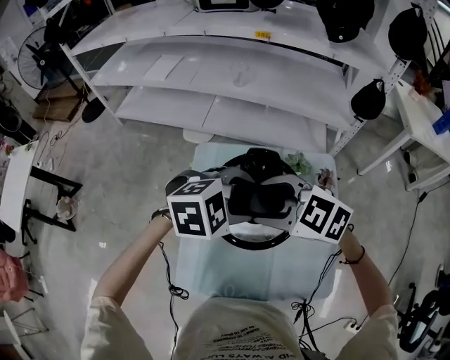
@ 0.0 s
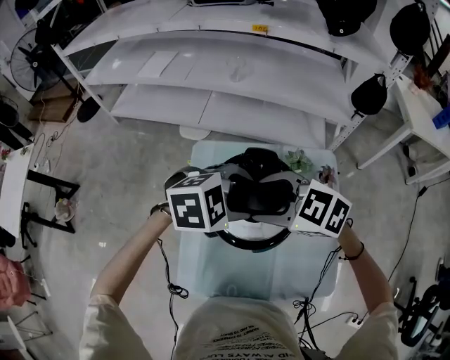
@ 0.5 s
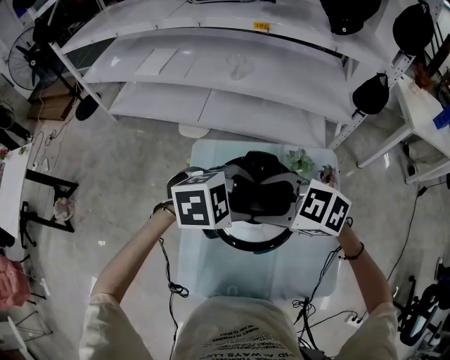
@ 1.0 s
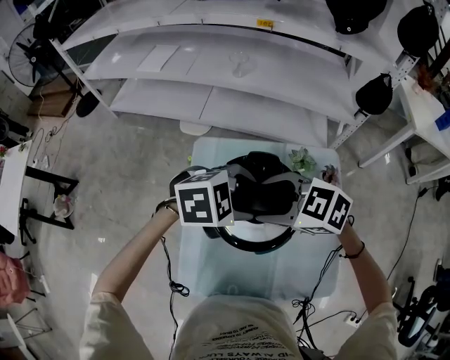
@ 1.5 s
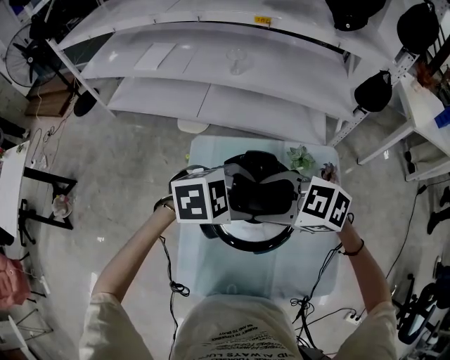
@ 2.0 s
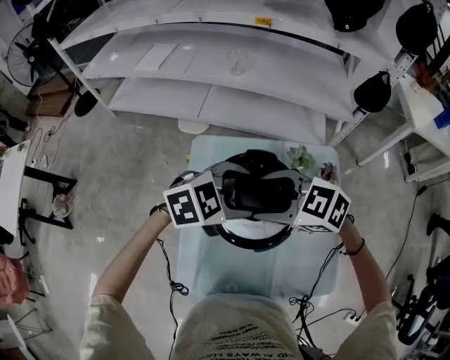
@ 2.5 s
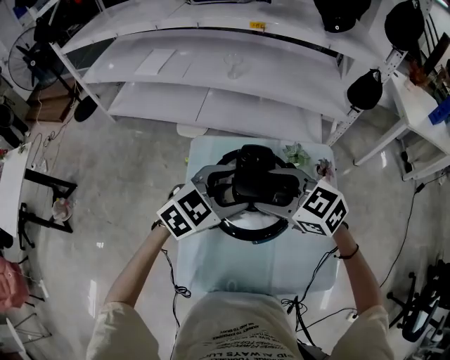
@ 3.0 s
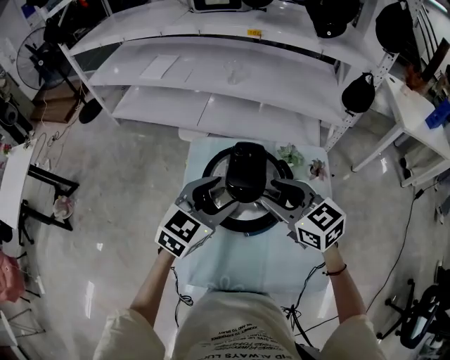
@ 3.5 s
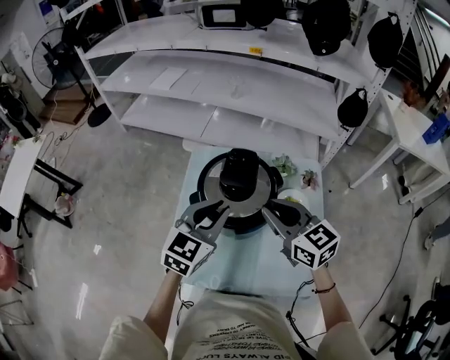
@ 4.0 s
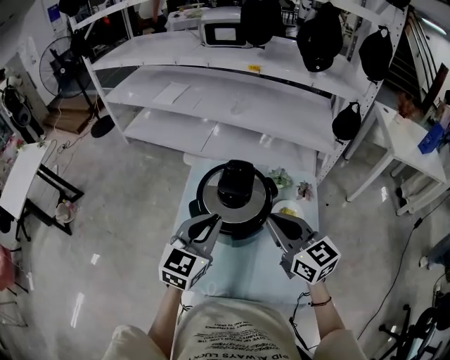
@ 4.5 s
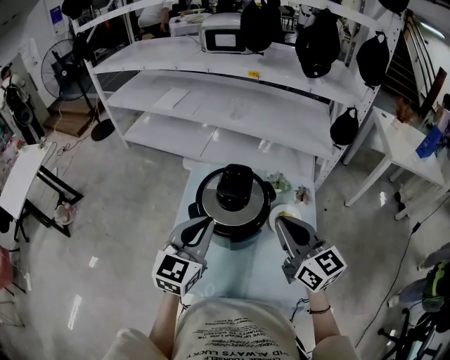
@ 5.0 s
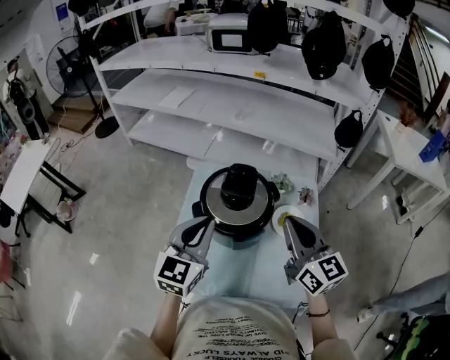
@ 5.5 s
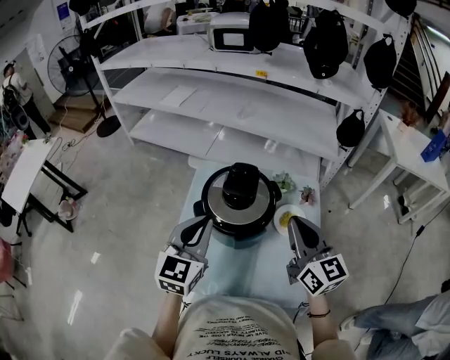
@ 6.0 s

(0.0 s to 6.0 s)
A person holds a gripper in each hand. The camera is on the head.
0.0 s - 2.0 s: The grippers stay close to where they were, moving slightly.
2.0 s - 4.0 s: The right gripper changes place by approximately 10 cm, changes its angle by about 40 degrees, and closes. Meanwhile the left gripper ends up approximately 10 cm from where it was, tilts its fingers some 30 degrees upward, and closes up.
4.0 s - 6.0 s: The left gripper shifts by roughly 5 cm. Meanwhile the right gripper travels to the right by roughly 5 cm, and turns by about 20 degrees.

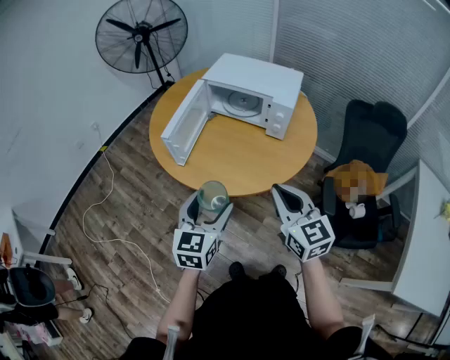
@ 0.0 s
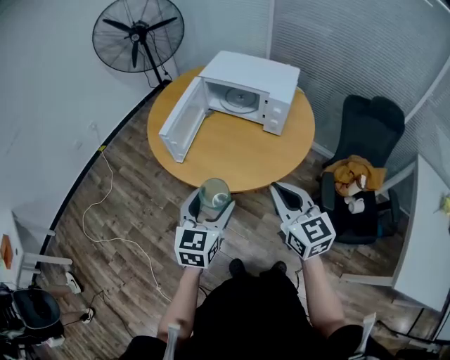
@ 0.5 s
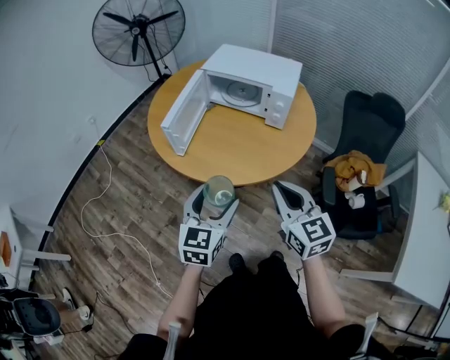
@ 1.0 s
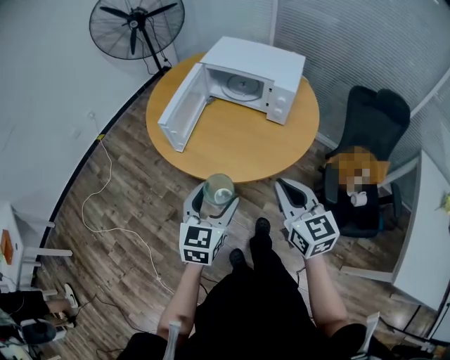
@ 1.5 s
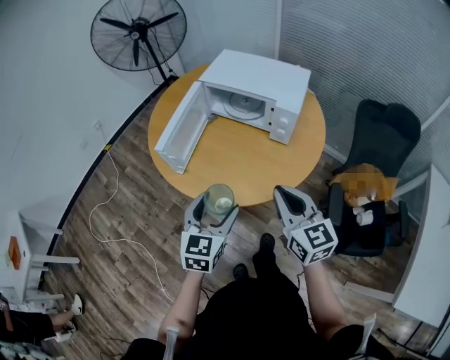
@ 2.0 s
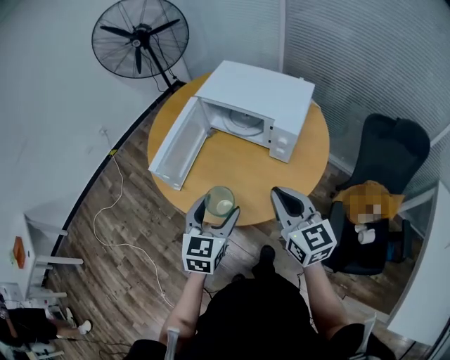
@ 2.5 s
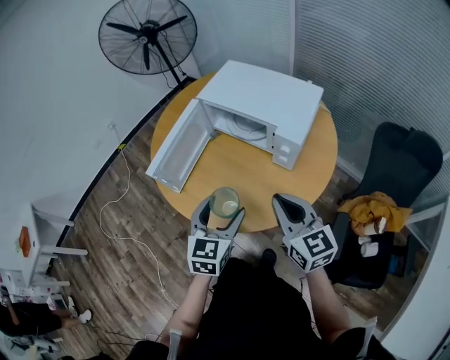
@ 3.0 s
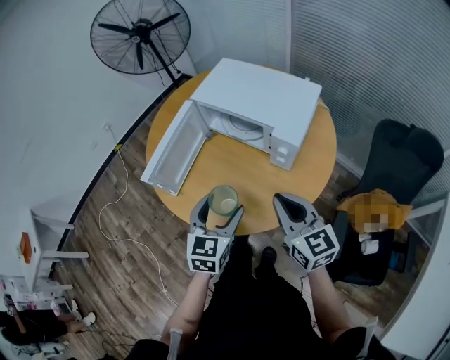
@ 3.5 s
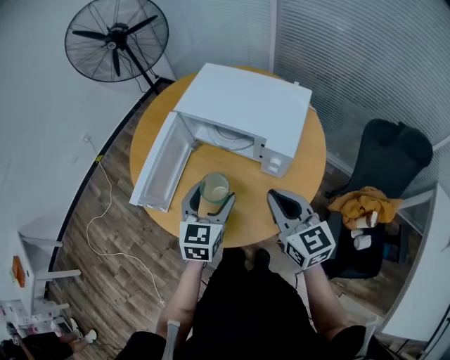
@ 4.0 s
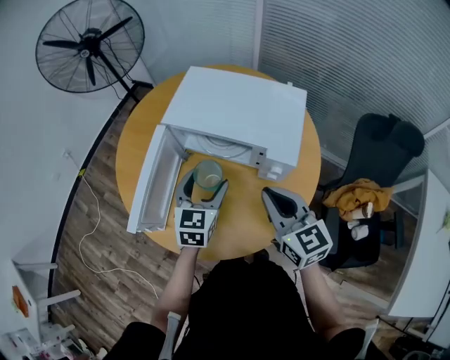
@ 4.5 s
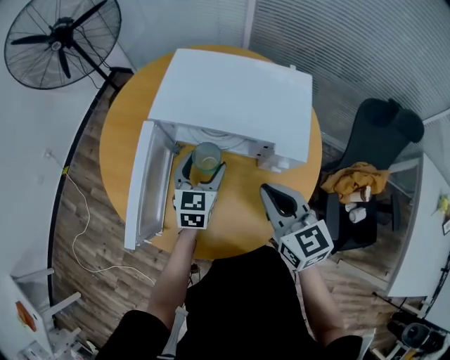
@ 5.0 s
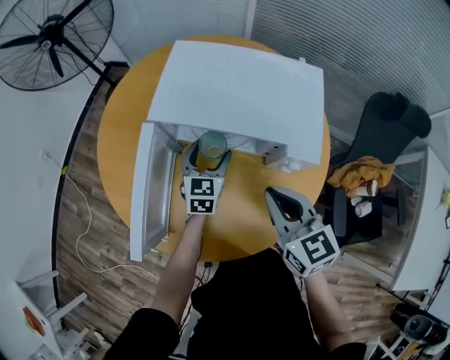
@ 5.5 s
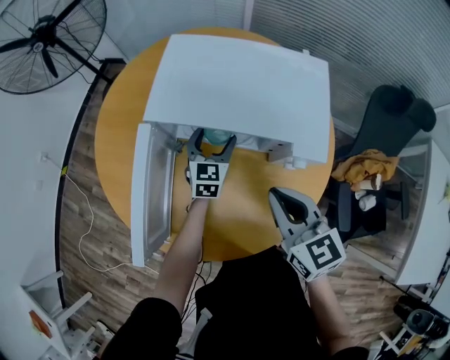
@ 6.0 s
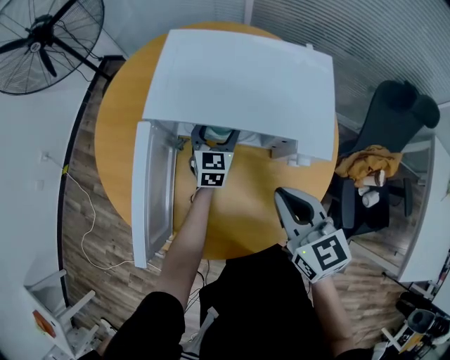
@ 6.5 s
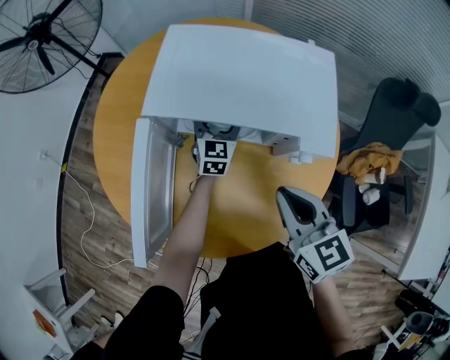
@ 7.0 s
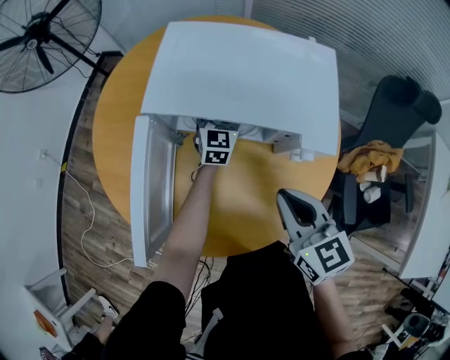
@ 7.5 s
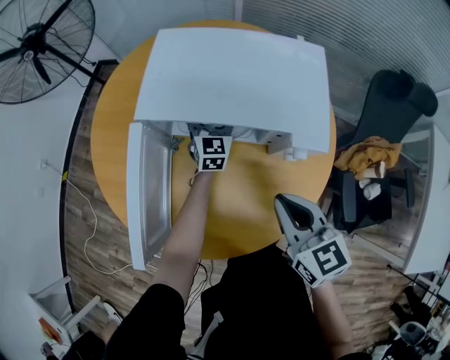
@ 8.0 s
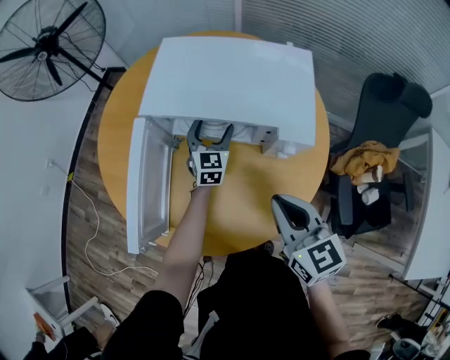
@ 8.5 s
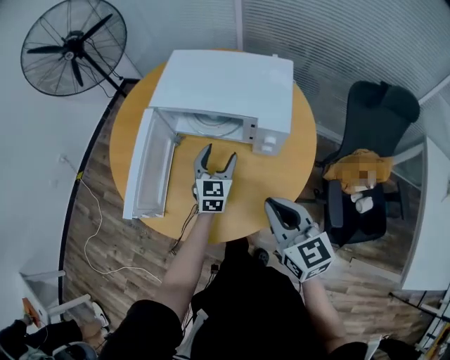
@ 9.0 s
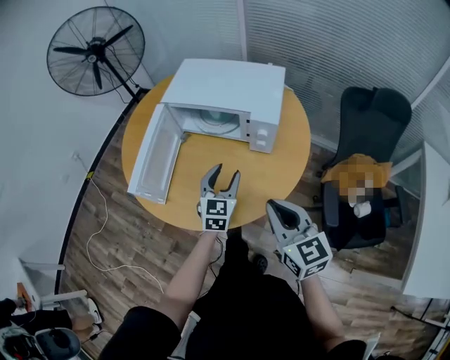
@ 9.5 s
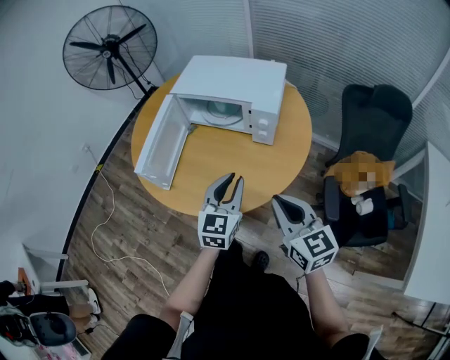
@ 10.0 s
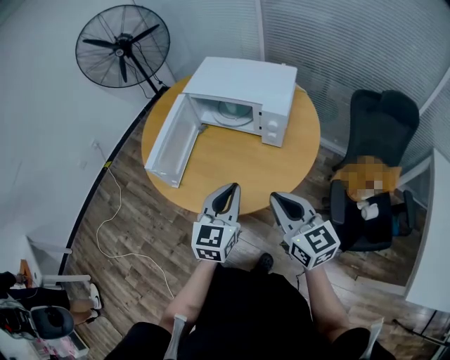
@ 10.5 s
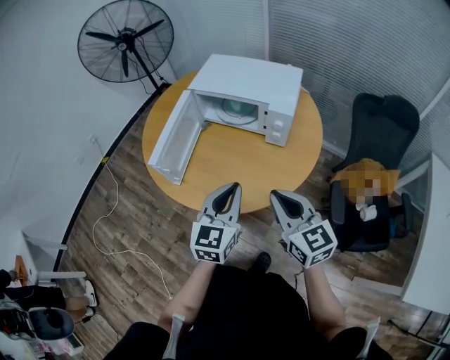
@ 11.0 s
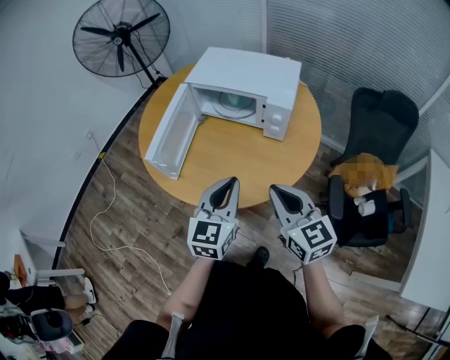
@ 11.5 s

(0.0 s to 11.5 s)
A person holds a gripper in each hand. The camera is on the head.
0.0 s - 2.0 s: The grippers both shift forward by roughly 5 cm.
2.0 s - 4.0 s: The right gripper goes about 20 cm forward and to the right; the left gripper moves forward, some 20 cm.
4.0 s - 6.0 s: The left gripper is displaced forward and downward by some 30 cm, while the right gripper shifts roughly 15 cm forward, to the left and downward.
6.0 s - 7.5 s: The left gripper travels forward by roughly 5 cm.
7.5 s - 9.5 s: The left gripper is displaced backward by approximately 35 cm, and closes its fingers. The right gripper shifts about 20 cm backward.
9.5 s - 11.5 s: The left gripper heads backward and upward, covering some 20 cm, and closes its fingers.

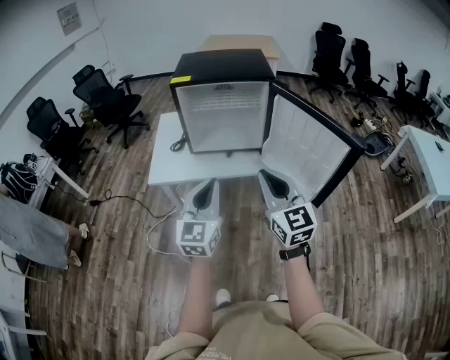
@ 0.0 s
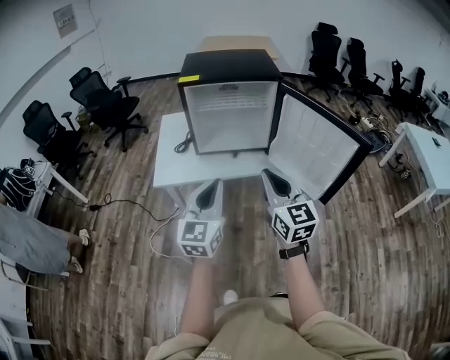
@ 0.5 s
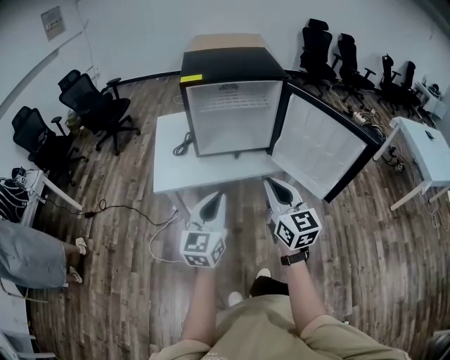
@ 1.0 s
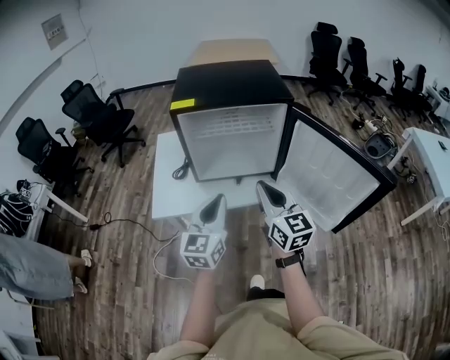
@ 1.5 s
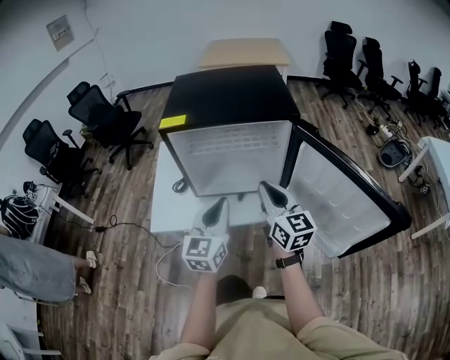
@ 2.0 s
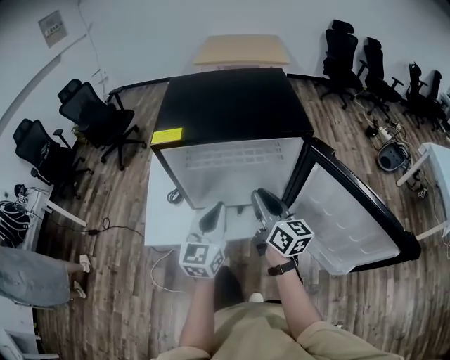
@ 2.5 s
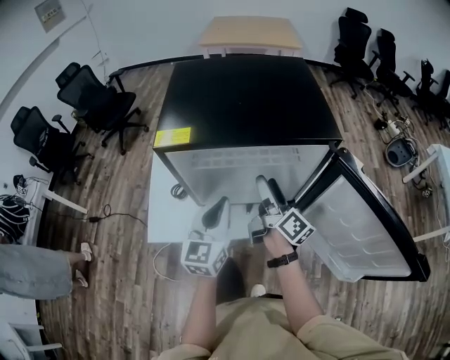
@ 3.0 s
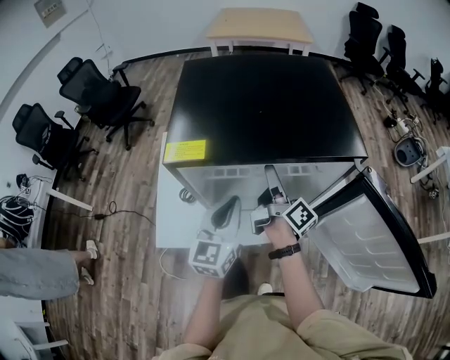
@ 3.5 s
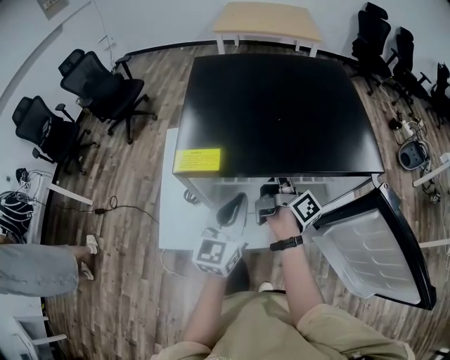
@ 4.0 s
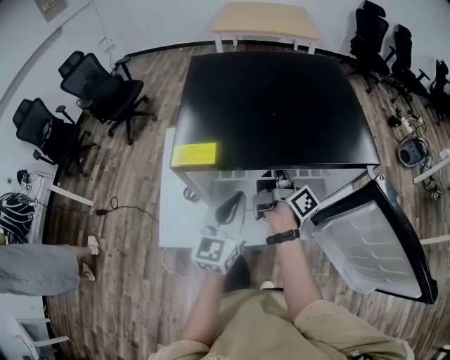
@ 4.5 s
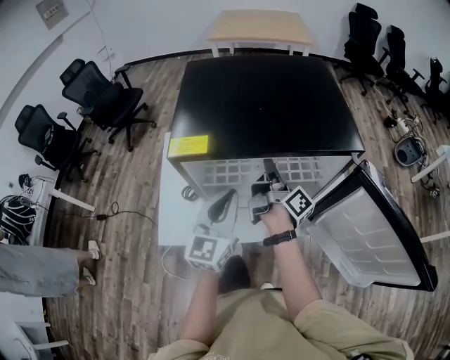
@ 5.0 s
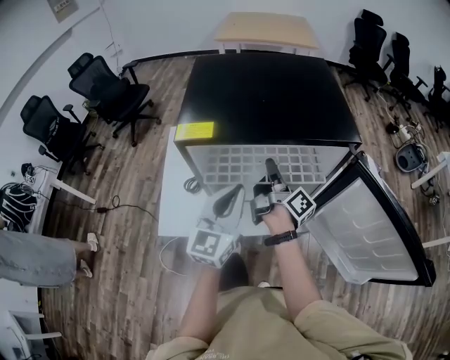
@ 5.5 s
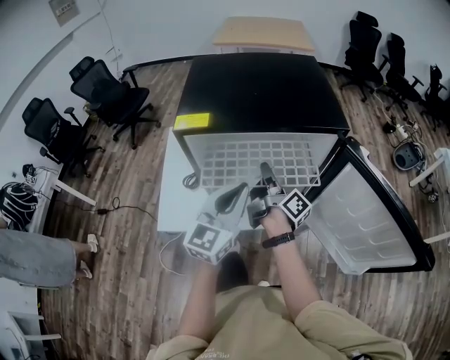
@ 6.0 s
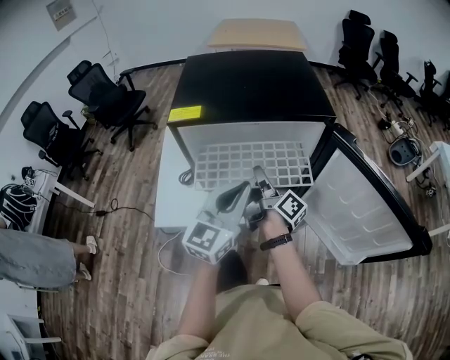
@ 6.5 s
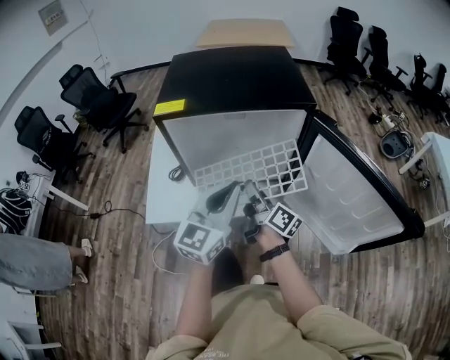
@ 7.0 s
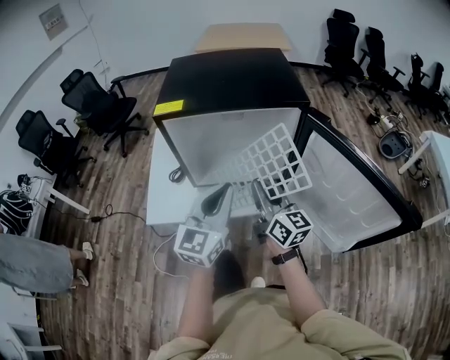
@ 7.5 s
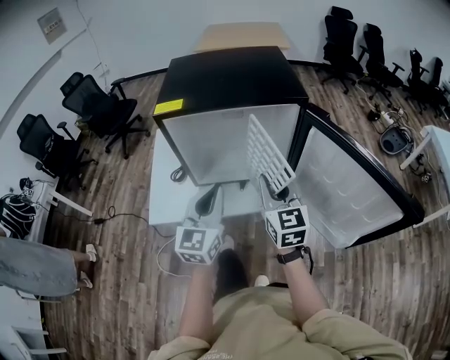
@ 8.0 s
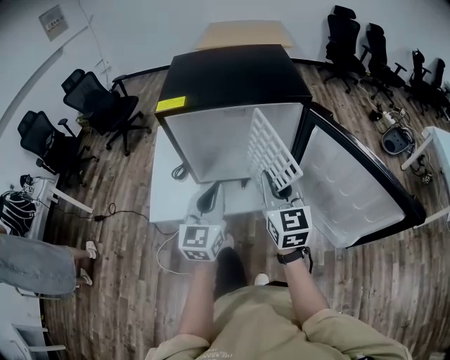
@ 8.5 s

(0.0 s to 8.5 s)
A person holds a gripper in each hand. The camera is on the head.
0.0 s - 2.0 s: Both grippers move forward, approximately 25 cm.
2.0 s - 4.0 s: The two grippers go some 25 cm forward. The right gripper rolls clockwise, seen from behind, by roughly 60 degrees, and opens its fingers.
4.0 s - 6.5 s: The left gripper heads backward, to the right and upward, covering approximately 15 cm, while the right gripper travels backward by approximately 15 cm, and closes up.
6.5 s - 8.5 s: The left gripper changes place by about 5 cm. The right gripper moves backward, upward and to the right, some 15 cm, and rotates around the line of its fingers by approximately 80 degrees, counterclockwise from behind.
